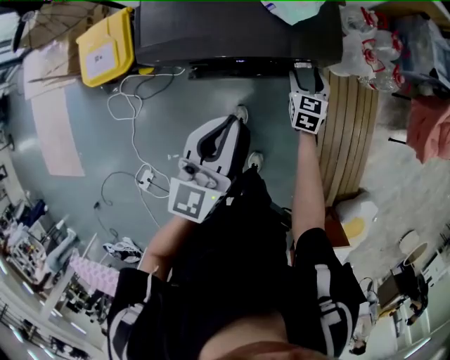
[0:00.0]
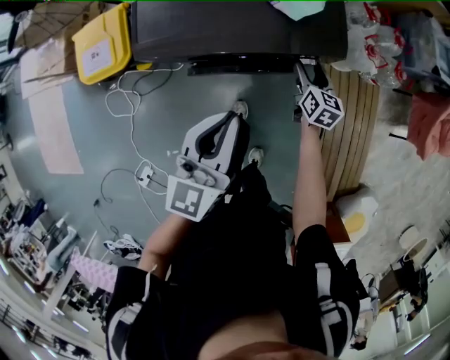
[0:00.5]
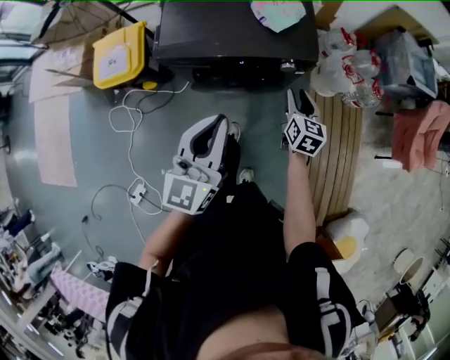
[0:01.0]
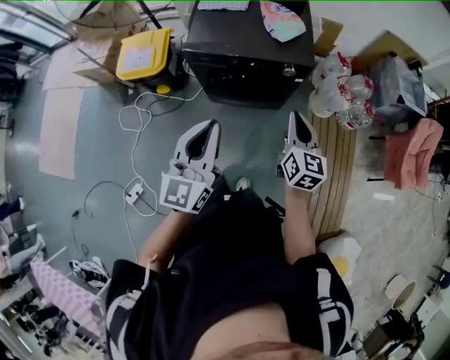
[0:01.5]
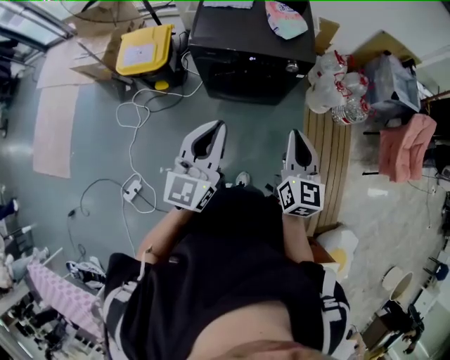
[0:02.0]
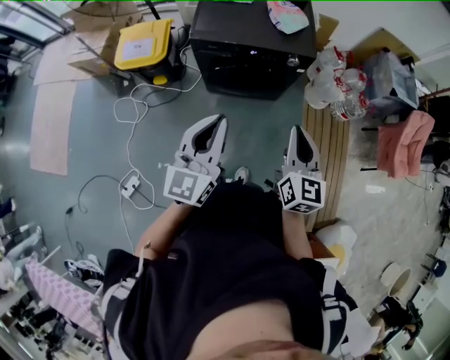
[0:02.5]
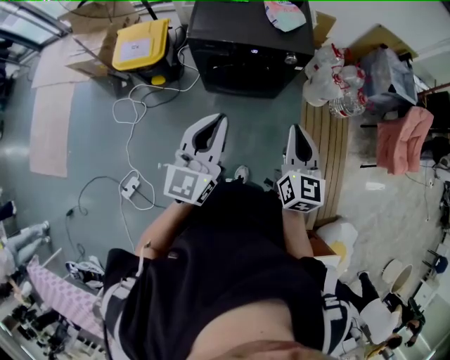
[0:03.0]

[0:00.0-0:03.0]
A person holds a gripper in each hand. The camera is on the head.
0:00.0 to 0:01.5: Both grippers move backward and upward, roughly 40 cm. The right gripper swivels approximately 30 degrees, and closes up.
0:01.5 to 0:03.0: The right gripper shifts approximately 15 cm backward, upward and to the left. Meanwhile the left gripper is displaced backward by some 5 cm.

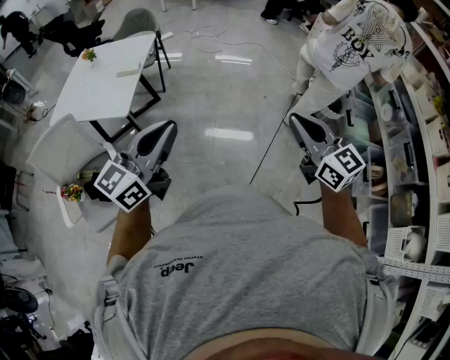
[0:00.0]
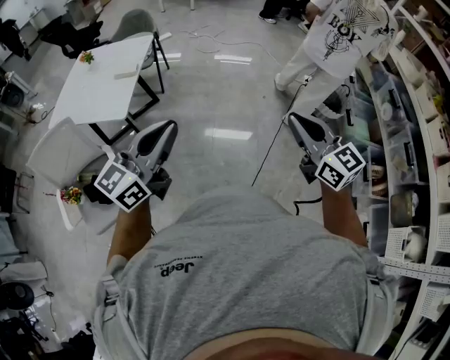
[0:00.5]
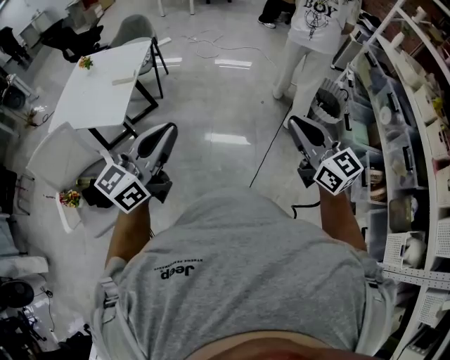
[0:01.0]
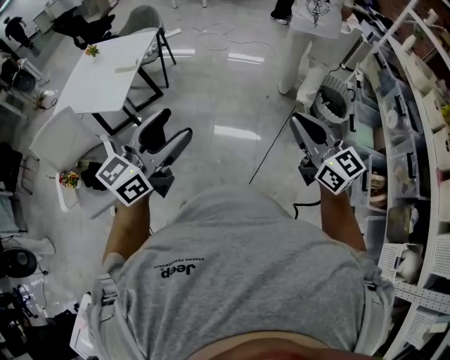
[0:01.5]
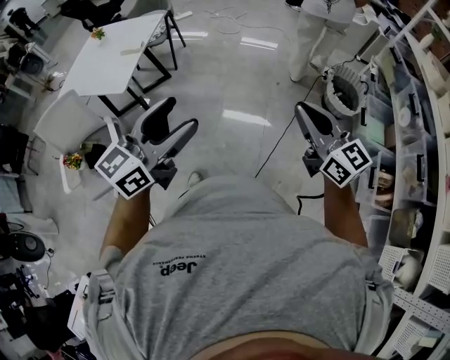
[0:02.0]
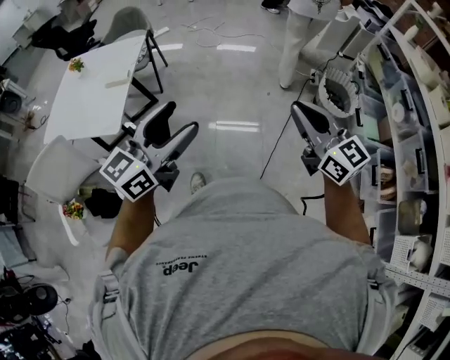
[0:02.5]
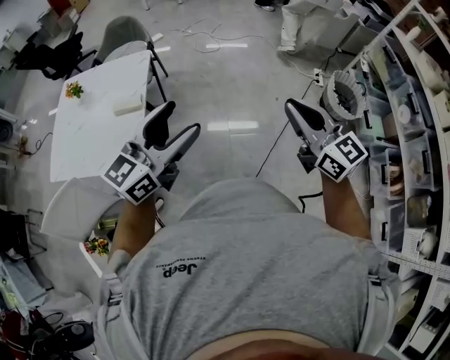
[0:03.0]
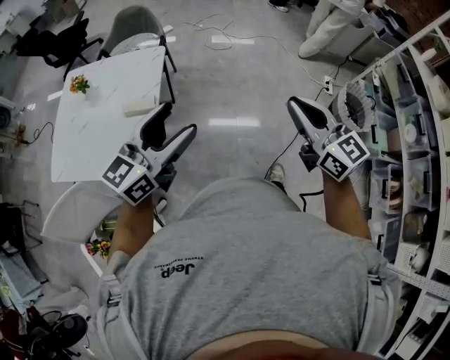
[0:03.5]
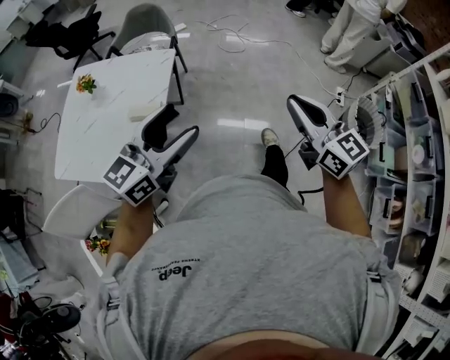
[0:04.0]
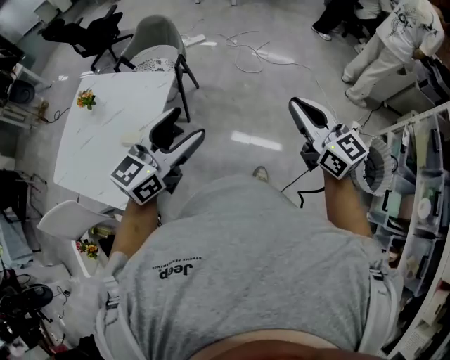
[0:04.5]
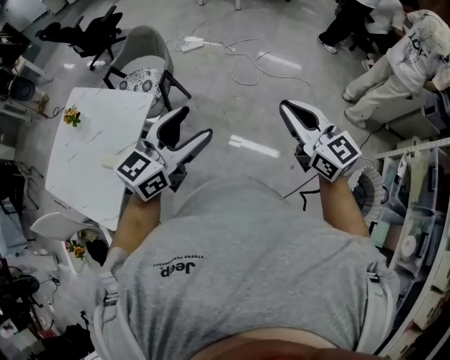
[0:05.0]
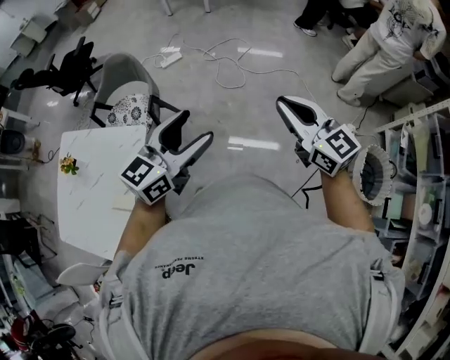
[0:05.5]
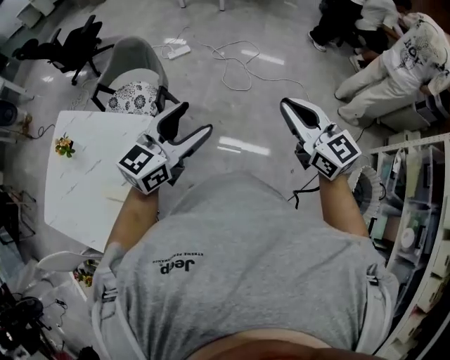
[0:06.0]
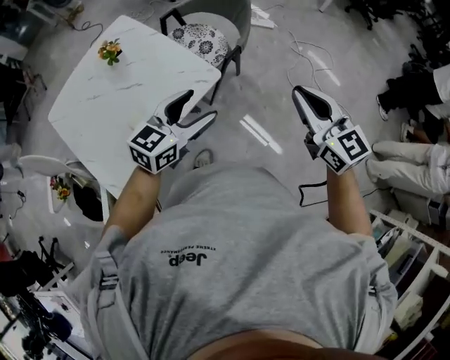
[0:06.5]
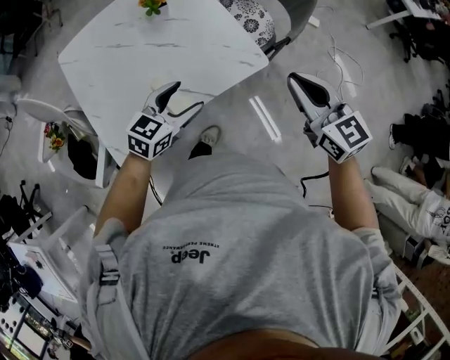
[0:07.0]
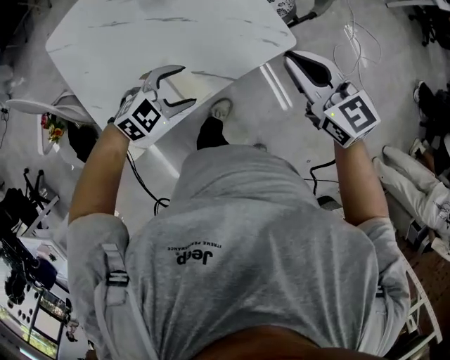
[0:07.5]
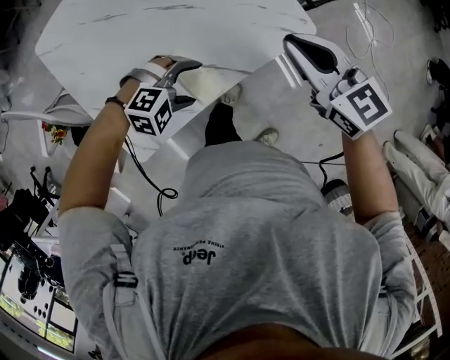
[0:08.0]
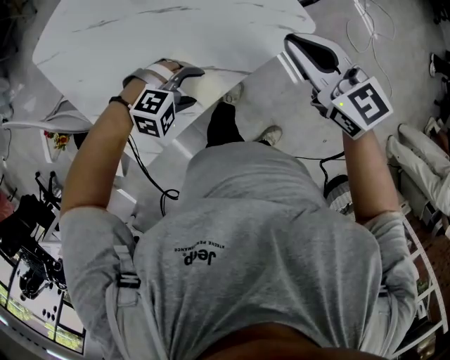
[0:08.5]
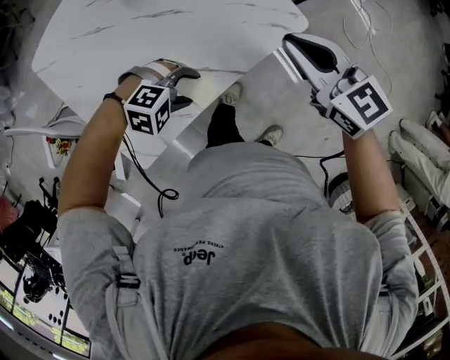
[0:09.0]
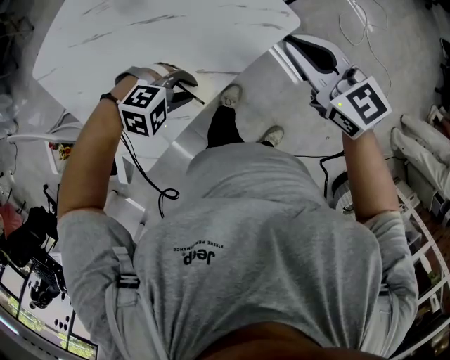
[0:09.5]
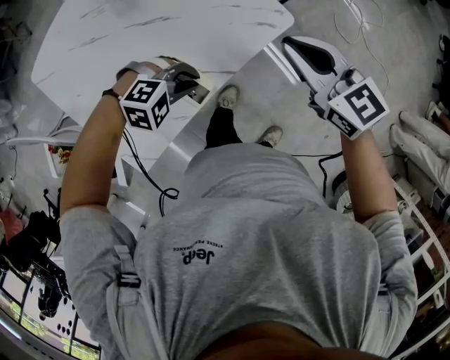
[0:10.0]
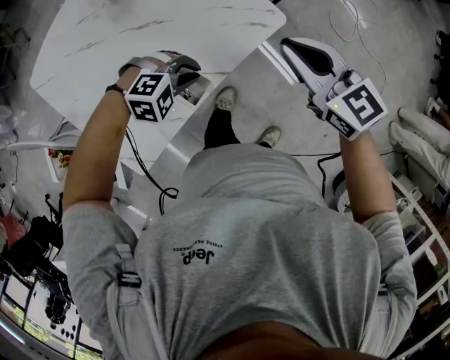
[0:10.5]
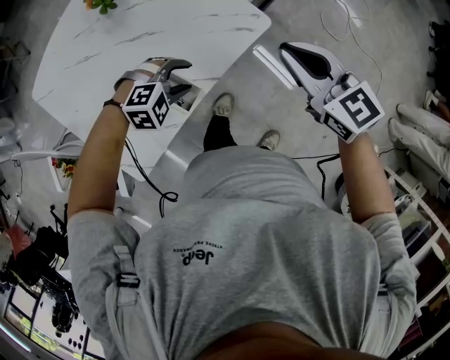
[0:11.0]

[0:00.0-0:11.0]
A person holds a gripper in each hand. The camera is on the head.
0:00.0 to 0:02.0: The grippers both shift to the right by approximately 15 cm. The left gripper opens its fingers.
0:02.0 to 0:03.5: The pair of grippers is taken forward and to the left, some 50 cm.
0:03.5 to 0:05.5: Both grippers are carried forward, roughly 50 cm.
0:05.5 to 0:07.5: The pair of grippers is taken approximately 50 cm. The right gripper turns by roughly 50 degrees. Meanwhile the left gripper tilts its fingers approximately 40 degrees downward.
0:07.5 to 0:09.0: The left gripper heads downward, covering about 5 cm, and rotates roughly 40 degrees. The right gripper ends up roughly 5 cm from where it was.
0:09.0 to 0:11.0: The right gripper changes place by about 10 cm; the left gripper ends up about 10 cm from where it was.

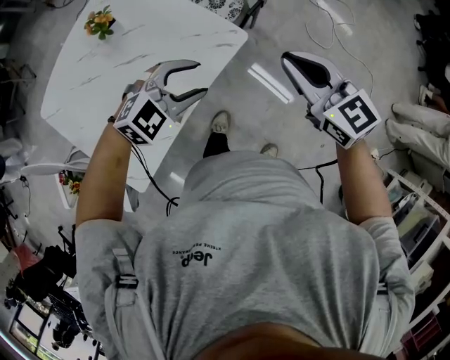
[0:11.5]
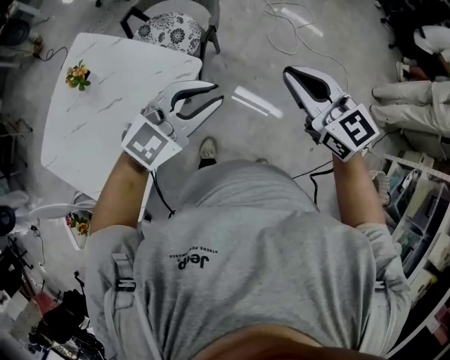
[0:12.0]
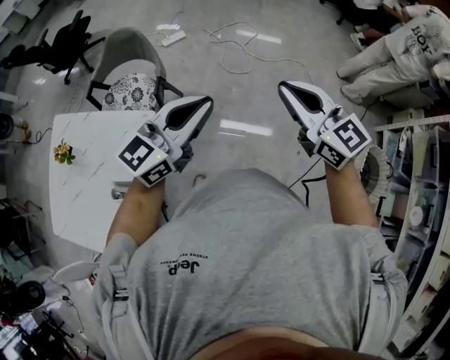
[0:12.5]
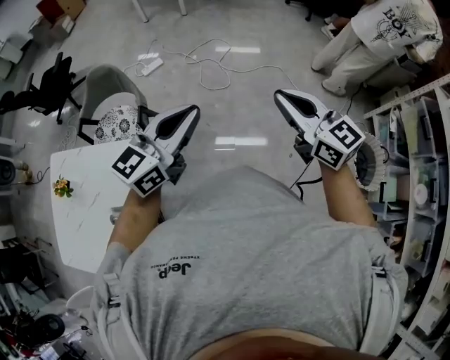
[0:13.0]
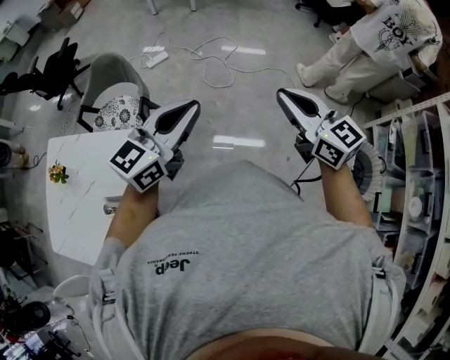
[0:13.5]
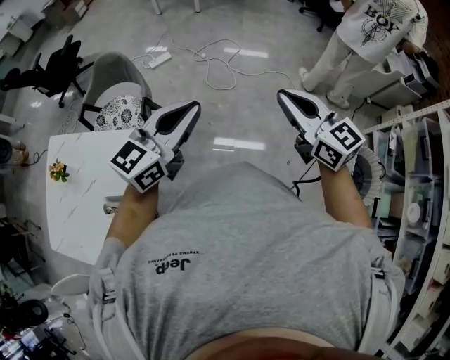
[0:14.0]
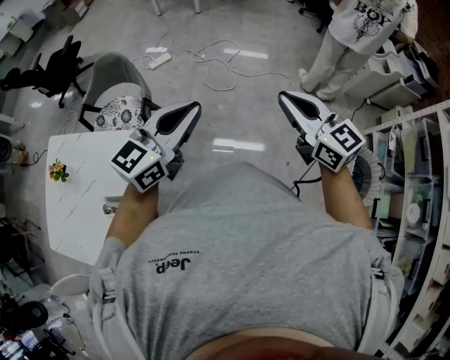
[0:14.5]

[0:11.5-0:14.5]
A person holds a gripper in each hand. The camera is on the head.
0:11.5 to 0:13.0: The right gripper shifts by roughly 40 cm, and changes its angle by roughly 40 degrees. The left gripper moves about 40 cm, points its fingers approximately 40 degrees further upward, and closes.
0:13.0 to 0:14.5: The grippers make only small movements.

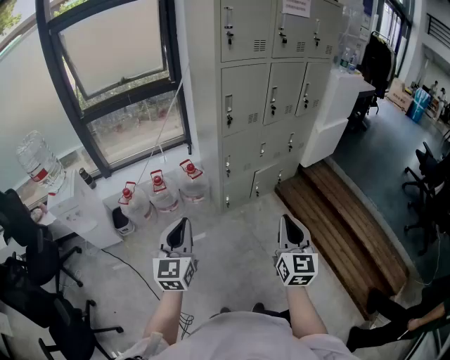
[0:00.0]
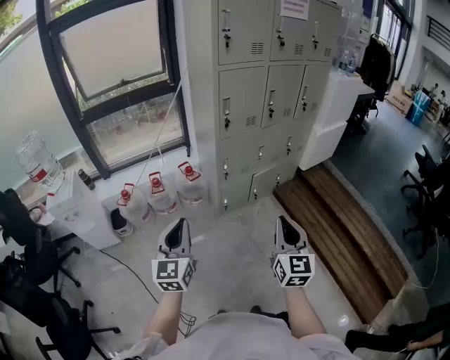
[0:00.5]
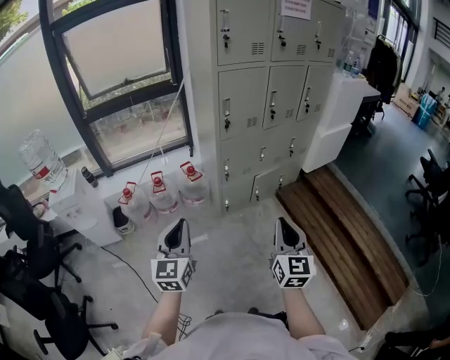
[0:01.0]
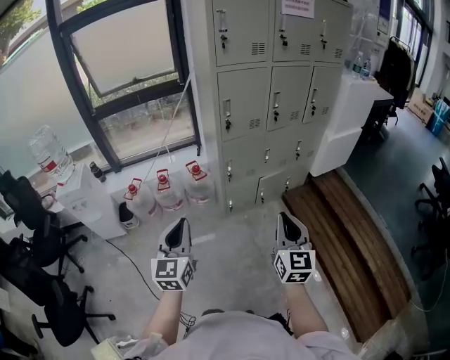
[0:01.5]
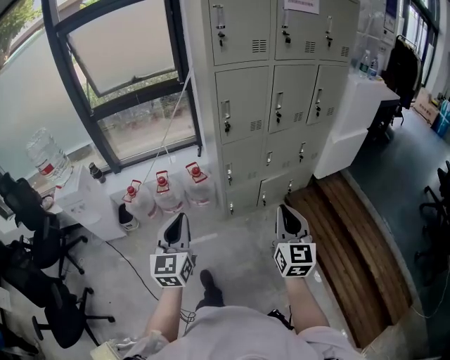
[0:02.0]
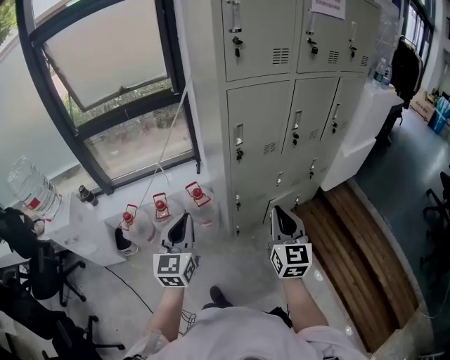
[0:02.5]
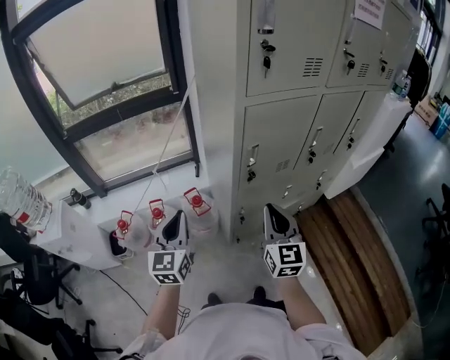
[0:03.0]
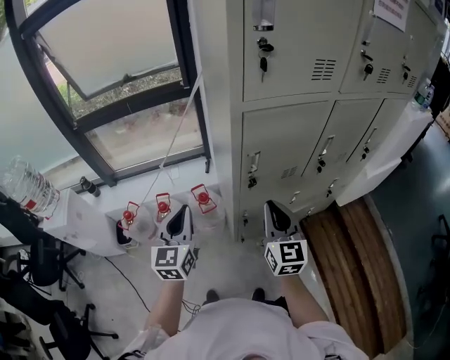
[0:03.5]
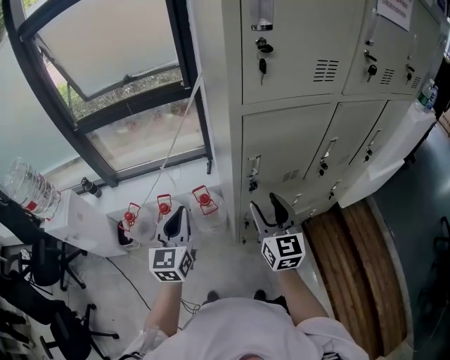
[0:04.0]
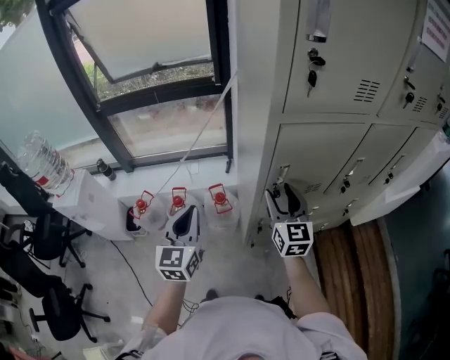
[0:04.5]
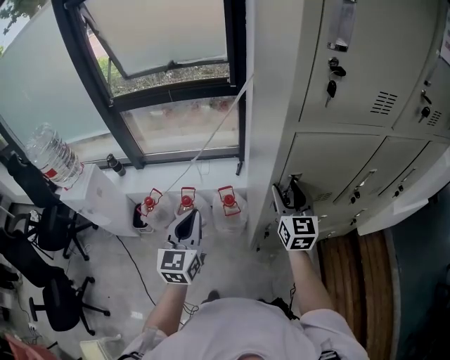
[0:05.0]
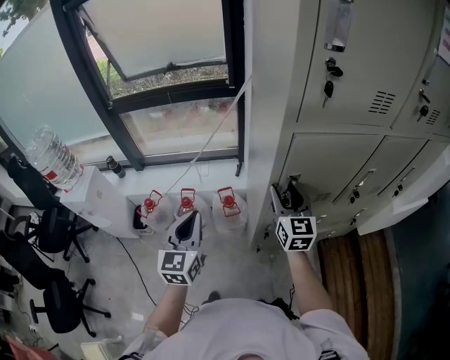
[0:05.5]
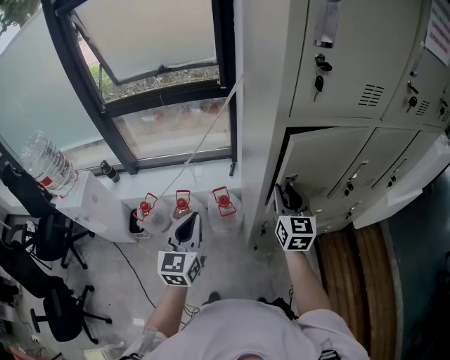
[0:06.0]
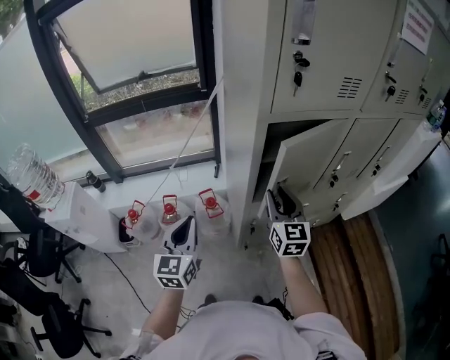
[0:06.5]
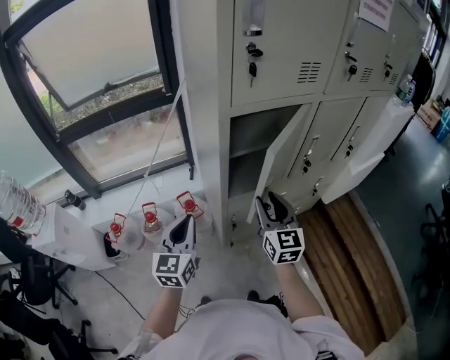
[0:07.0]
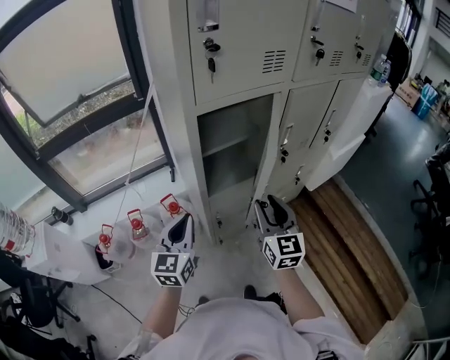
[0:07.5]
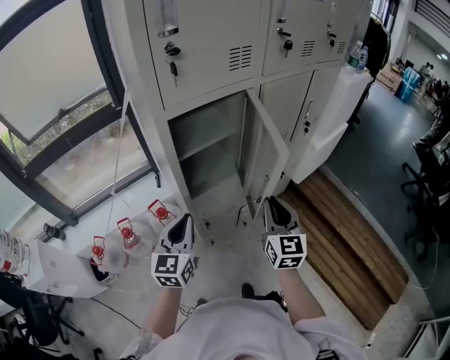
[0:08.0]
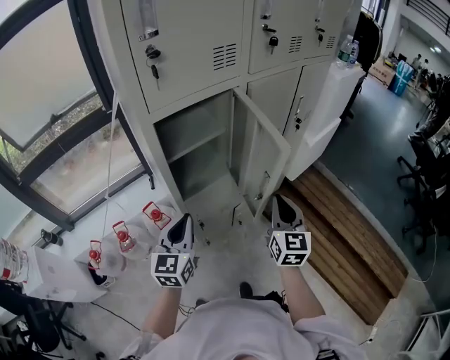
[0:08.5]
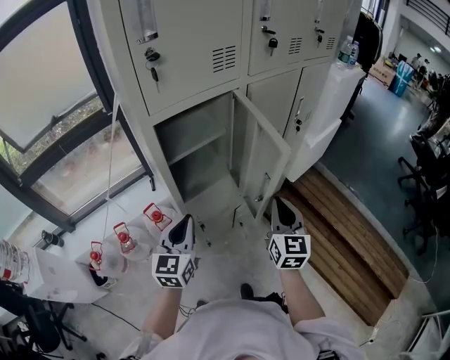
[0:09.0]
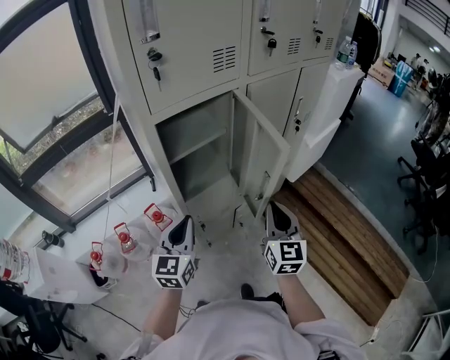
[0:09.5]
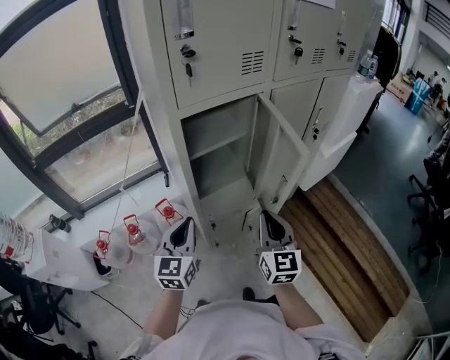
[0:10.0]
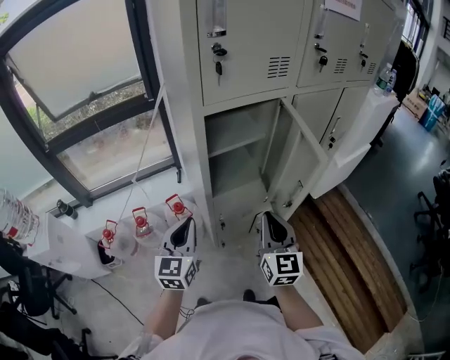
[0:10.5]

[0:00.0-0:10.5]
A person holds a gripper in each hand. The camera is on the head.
0:00.0 to 0:02.0: The right gripper shifts roughly 15 cm forward and to the right. Meanwhile the left gripper travels to the right and forward by roughly 10 cm.
0:02.0 to 0:04.0: Both grippers are carried forward, roughly 40 cm. The right gripper opens up.
0:04.0 to 0:06.5: The right gripper heads forward, covering some 5 cm, and closes.
0:06.5 to 0:08.5: The right gripper changes place by about 25 cm, turns by approximately 30 degrees, and closes. The left gripper changes place by about 20 cm, and turns by about 30 degrees.
0:08.5 to 0:10.5: The left gripper goes some 5 cm to the left, while the right gripper shifts roughly 10 cm to the left.
